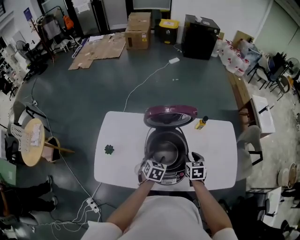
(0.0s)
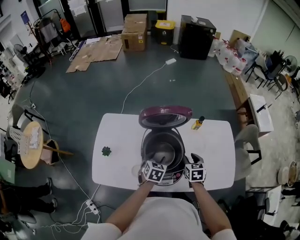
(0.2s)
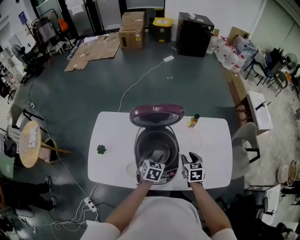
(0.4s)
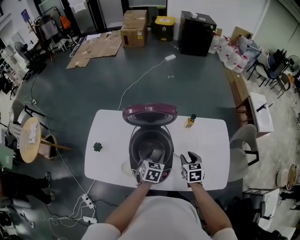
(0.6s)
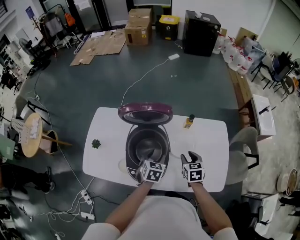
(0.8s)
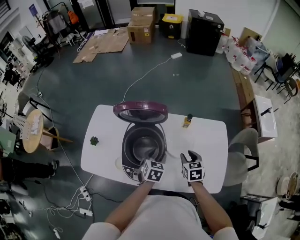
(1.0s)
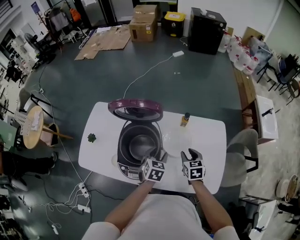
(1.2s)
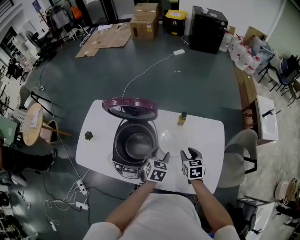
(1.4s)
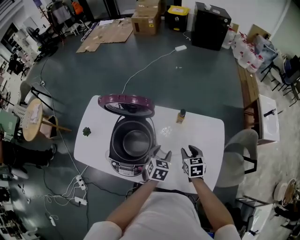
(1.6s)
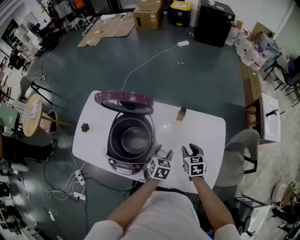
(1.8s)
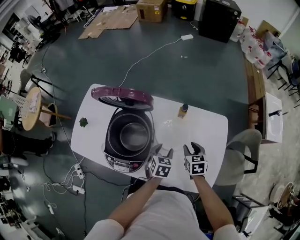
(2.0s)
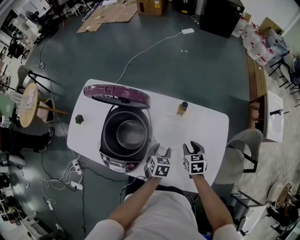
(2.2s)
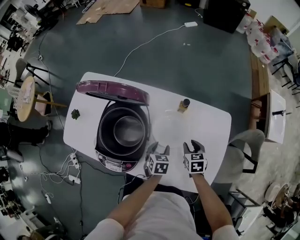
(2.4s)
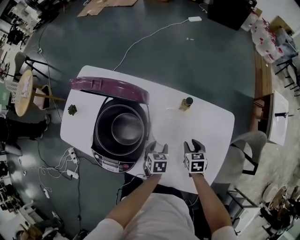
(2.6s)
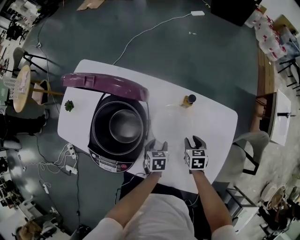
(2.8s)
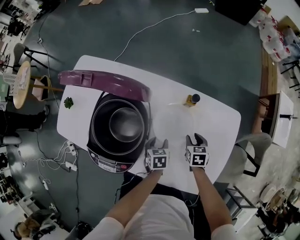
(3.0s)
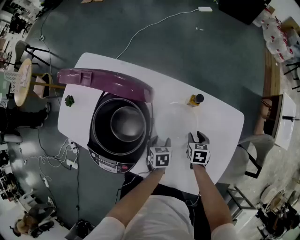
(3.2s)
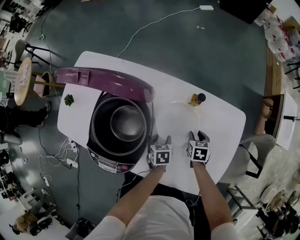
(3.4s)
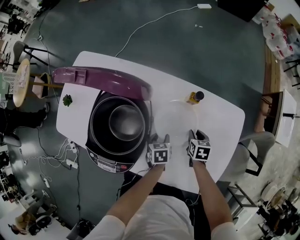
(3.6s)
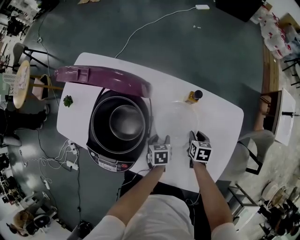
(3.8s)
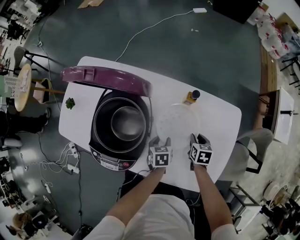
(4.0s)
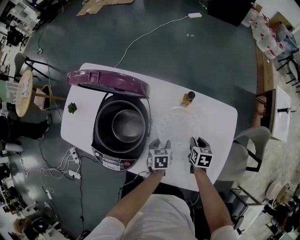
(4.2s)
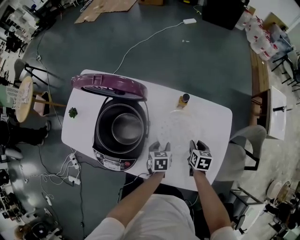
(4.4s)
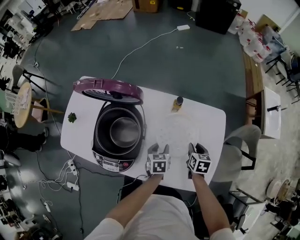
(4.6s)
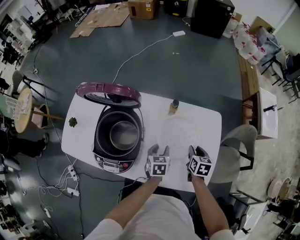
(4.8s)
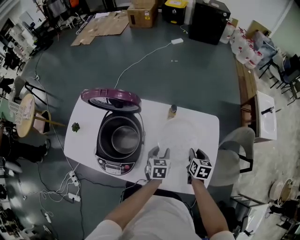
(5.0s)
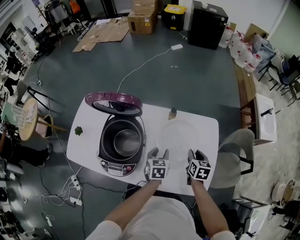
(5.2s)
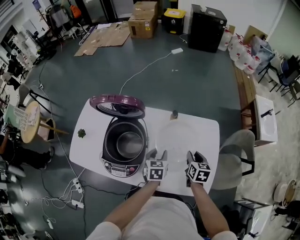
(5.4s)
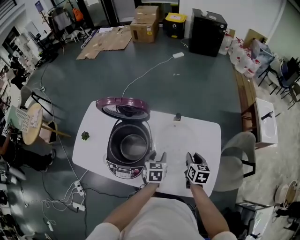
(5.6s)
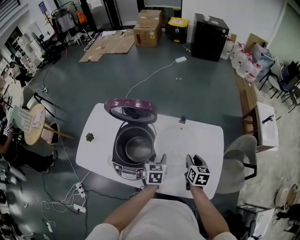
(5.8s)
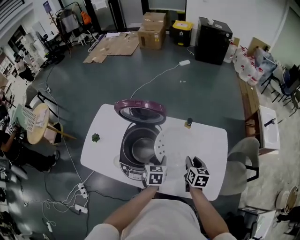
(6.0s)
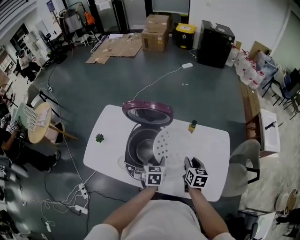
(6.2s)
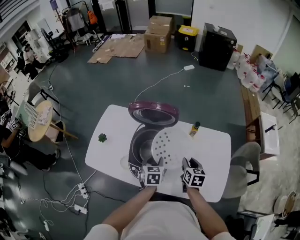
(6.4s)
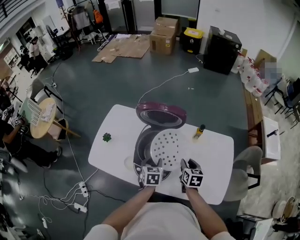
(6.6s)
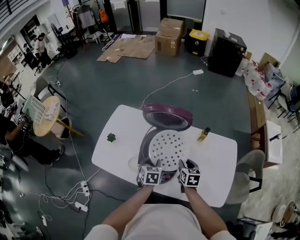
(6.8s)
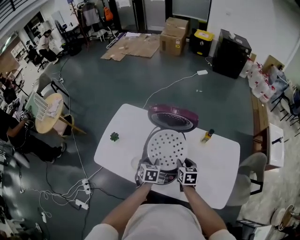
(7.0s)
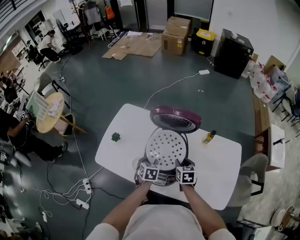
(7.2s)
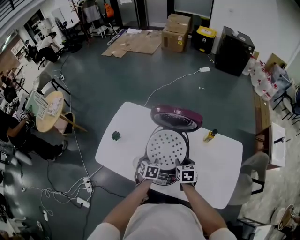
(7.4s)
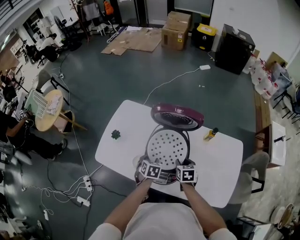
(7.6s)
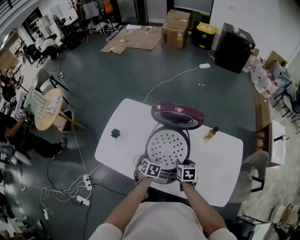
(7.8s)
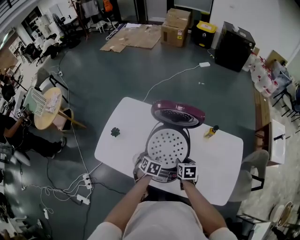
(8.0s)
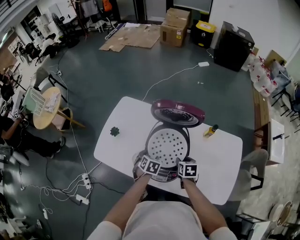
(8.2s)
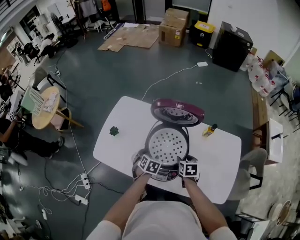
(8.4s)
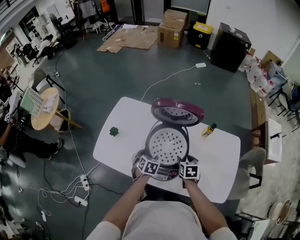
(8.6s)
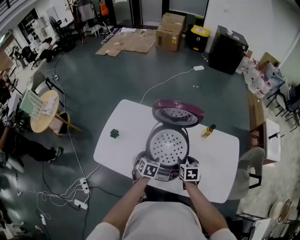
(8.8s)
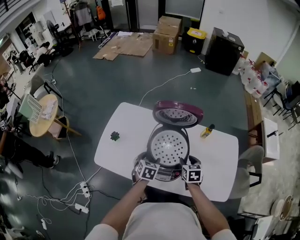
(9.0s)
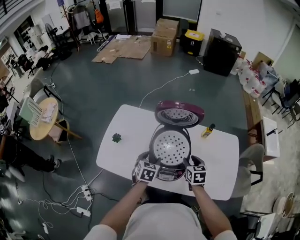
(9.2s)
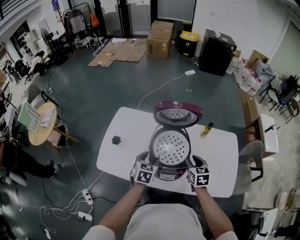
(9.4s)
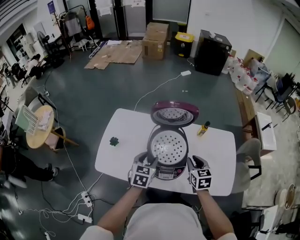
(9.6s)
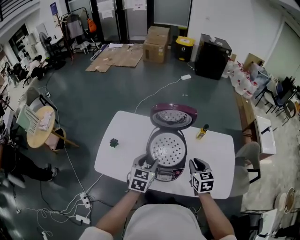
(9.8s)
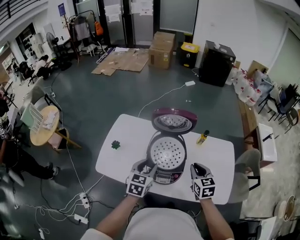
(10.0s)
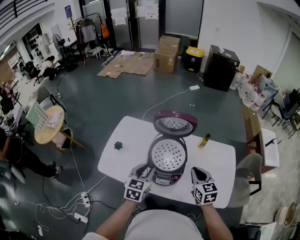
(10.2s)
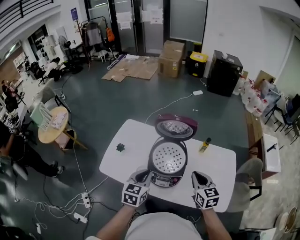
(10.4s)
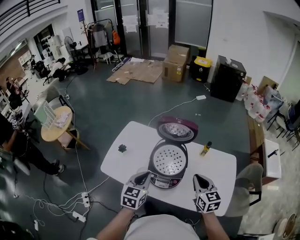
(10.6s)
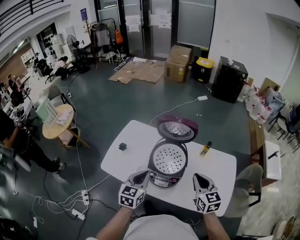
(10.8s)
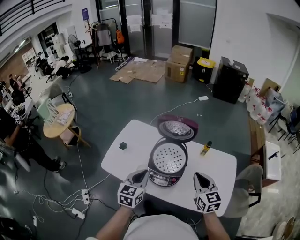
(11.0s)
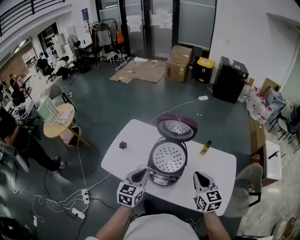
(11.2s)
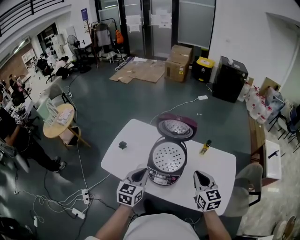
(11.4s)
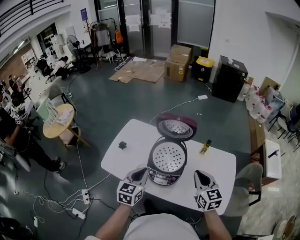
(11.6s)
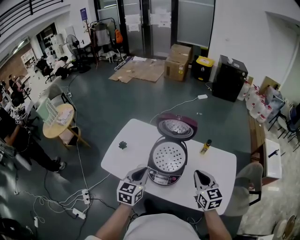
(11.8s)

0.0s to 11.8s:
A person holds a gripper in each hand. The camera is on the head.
0.0s to 1.4s: The two grippers go roughly 20 cm to the right.
1.4s to 3.0s: Both grippers move downward, approximately 20 cm. The left gripper changes its angle by roughly 40 degrees.
3.0s to 4.4s: The grippers both shift upward by roughly 5 cm.
4.4s to 6.0s: Both grippers travel together upward and to the left, roughly 20 cm.
6.0s to 7.4s: The two grippers go approximately 20 cm to the left. The right gripper swivels roughly 20 degrees.
7.4s to 8.8s: There are only small adjustments of the grippers.
8.8s to 10.4s: Both grippers move upward and backward, roughly 25 cm. The left gripper swivels roughly 30 degrees, and closes up. The right gripper rotates approximately 30 degrees, and closes.
10.4s to 11.8s: The grippers move only a little.

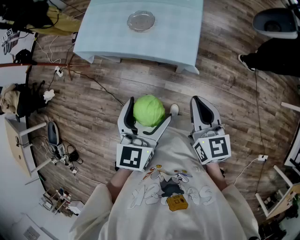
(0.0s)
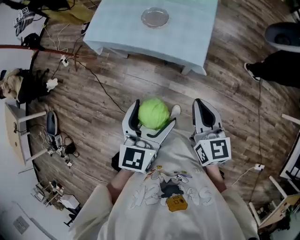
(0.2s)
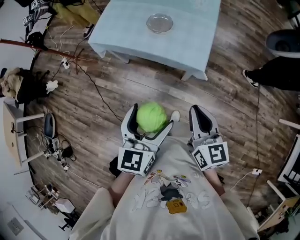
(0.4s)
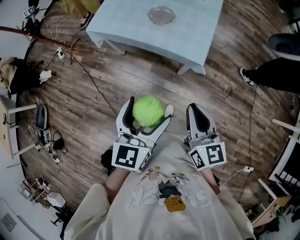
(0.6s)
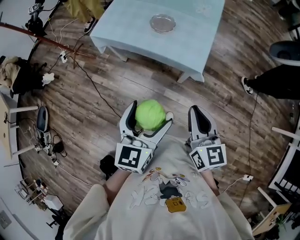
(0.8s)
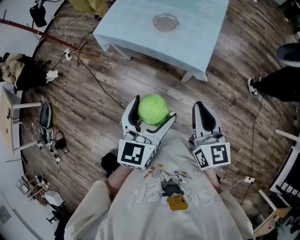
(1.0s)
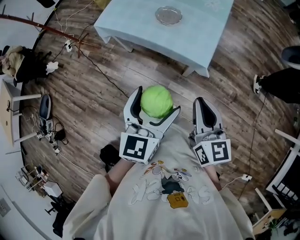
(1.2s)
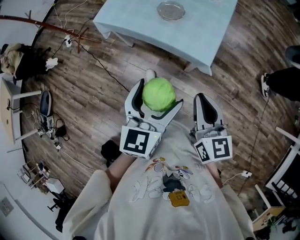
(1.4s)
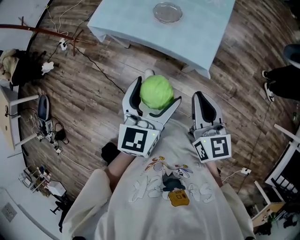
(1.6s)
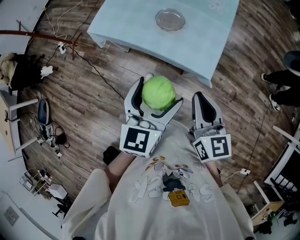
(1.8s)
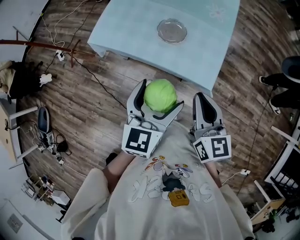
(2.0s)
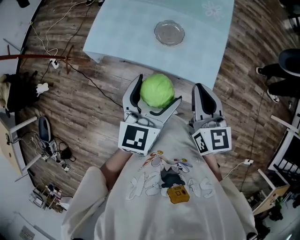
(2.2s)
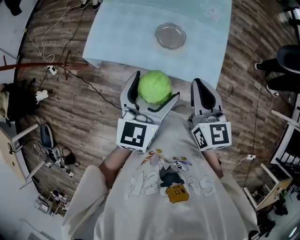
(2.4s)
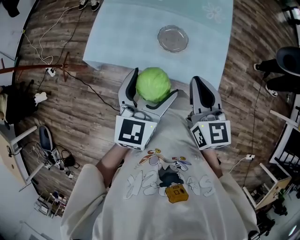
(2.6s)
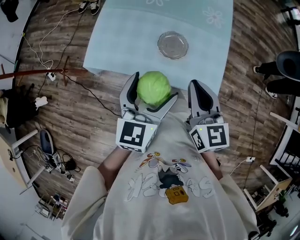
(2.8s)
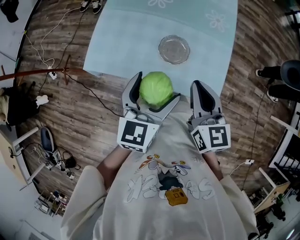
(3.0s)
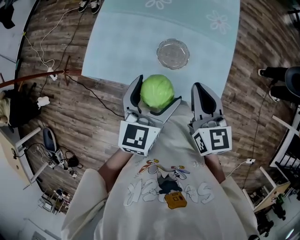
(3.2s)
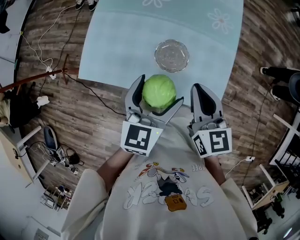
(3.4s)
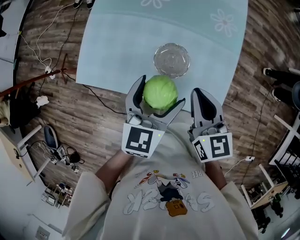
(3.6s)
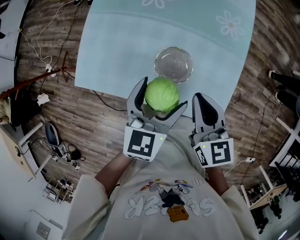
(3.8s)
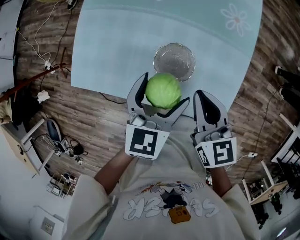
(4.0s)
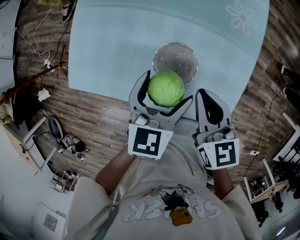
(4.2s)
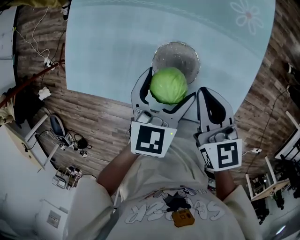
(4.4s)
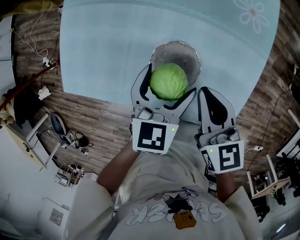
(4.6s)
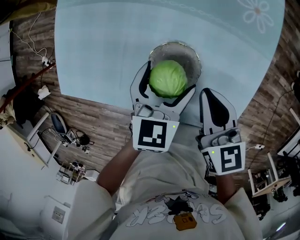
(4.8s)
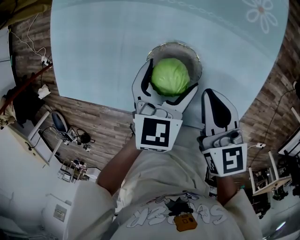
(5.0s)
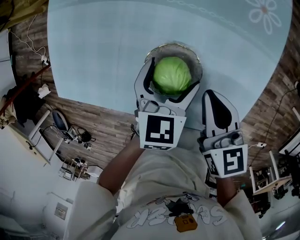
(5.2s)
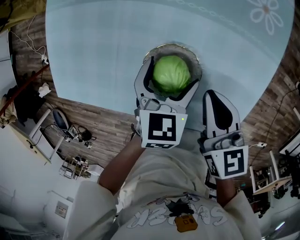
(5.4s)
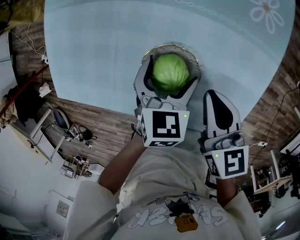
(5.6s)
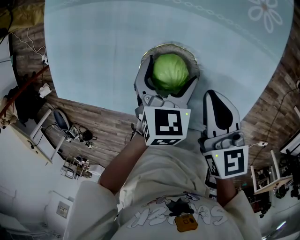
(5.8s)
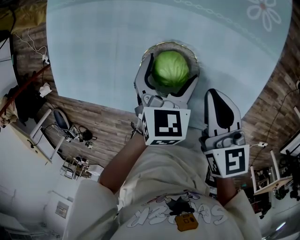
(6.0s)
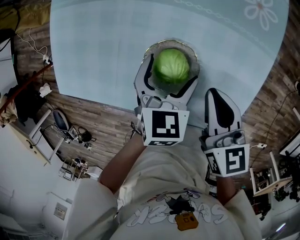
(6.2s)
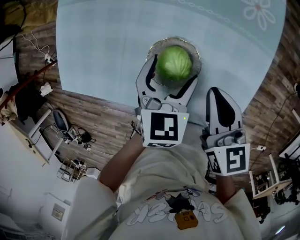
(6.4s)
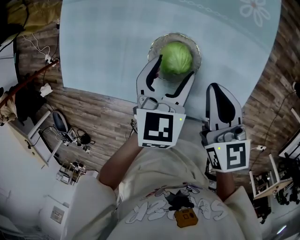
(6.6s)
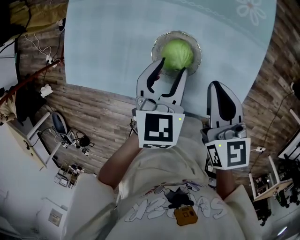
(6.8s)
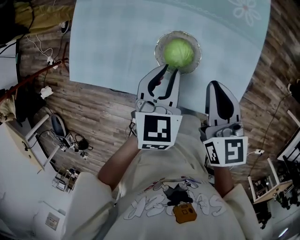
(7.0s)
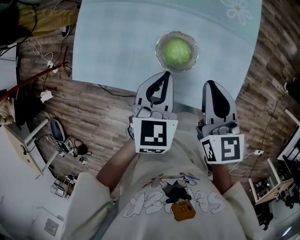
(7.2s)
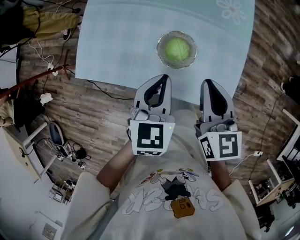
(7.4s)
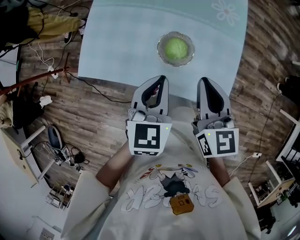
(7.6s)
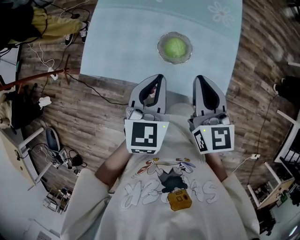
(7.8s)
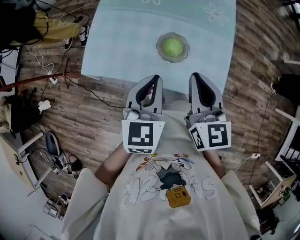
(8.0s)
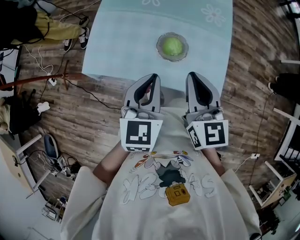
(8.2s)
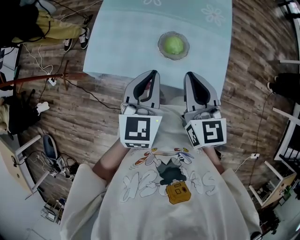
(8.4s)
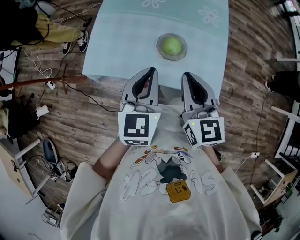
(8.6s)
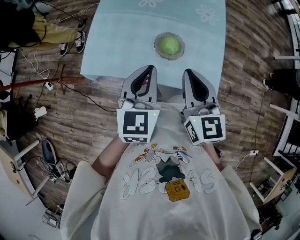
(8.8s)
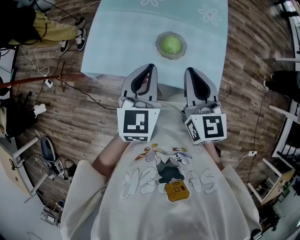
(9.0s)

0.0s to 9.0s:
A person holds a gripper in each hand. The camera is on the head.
0.0s to 1.6s: Both grippers travel together to the left, some 5 cm.
1.6s to 3.0s: Both grippers move forward and to the left, about 30 cm.
3.0s to 4.4s: The right gripper shifts about 20 cm downward and forward, while the left gripper travels downward, forward and to the right by approximately 25 cm.
4.4s to 6.0s: The right gripper goes approximately 5 cm downward. The left gripper goes roughly 10 cm downward.
6.0s to 7.6s: The two grippers go about 20 cm upward and backward. The right gripper swivels roughly 20 degrees, while the left gripper closes up.
7.6s to 9.0s: The right gripper shifts approximately 10 cm to the left and upward, while the left gripper travels upward and to the left by roughly 10 cm.

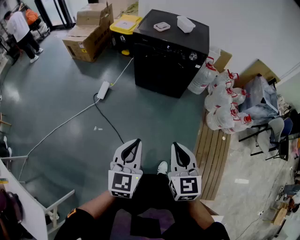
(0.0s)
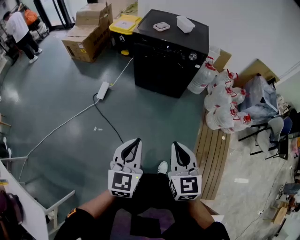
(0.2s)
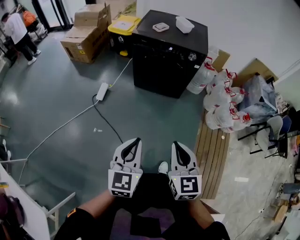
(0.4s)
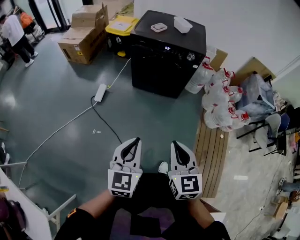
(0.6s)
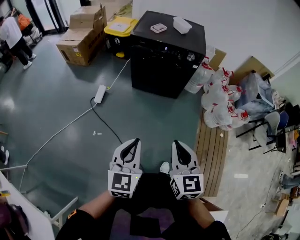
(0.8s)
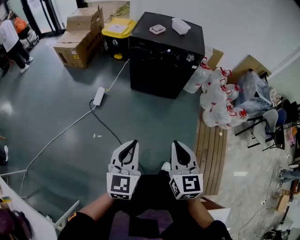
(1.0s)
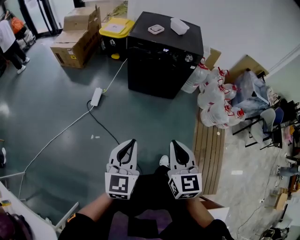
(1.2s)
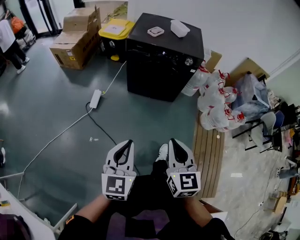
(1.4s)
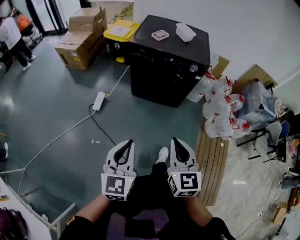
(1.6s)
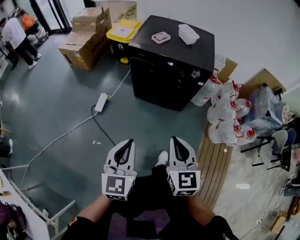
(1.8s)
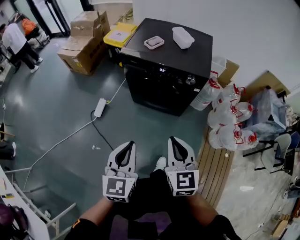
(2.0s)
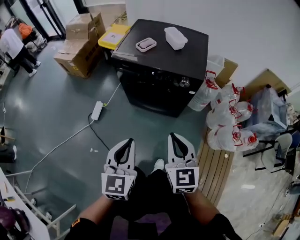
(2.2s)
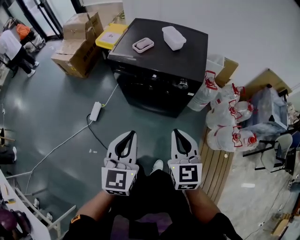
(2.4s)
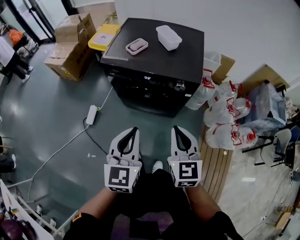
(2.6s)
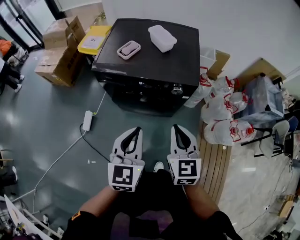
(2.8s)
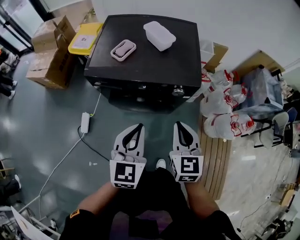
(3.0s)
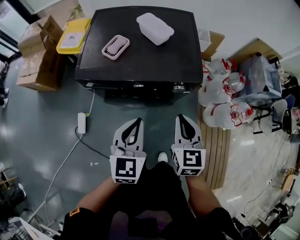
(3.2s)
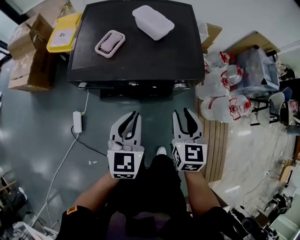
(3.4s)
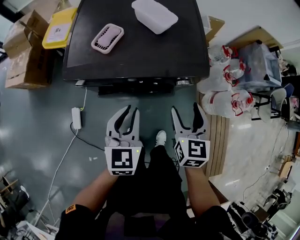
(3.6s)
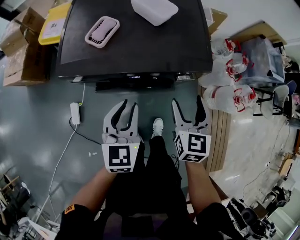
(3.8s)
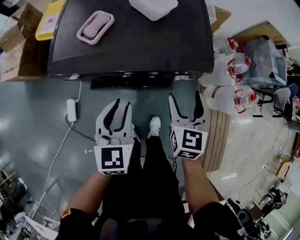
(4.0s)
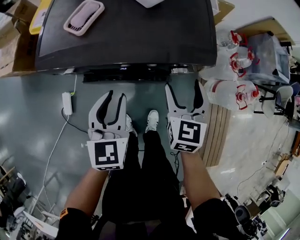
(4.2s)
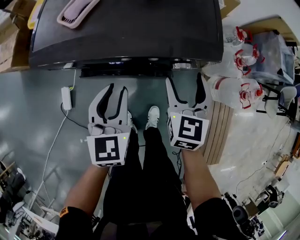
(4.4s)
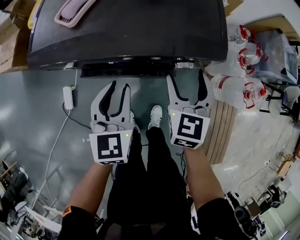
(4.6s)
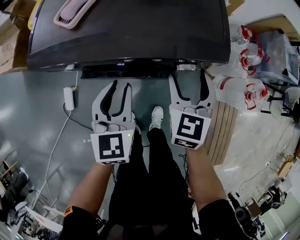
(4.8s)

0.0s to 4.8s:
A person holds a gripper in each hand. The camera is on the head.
0.0s to 1.6s: The right gripper moves forward, approximately 15 cm, while the left gripper travels forward and to the left by about 15 cm.
1.6s to 3.2s: The two grippers travel together, forward, some 50 cm.
3.2s to 4.8s: The grippers both shift downward and forward by about 20 cm. The left gripper opens its fingers, while the right gripper opens up.
